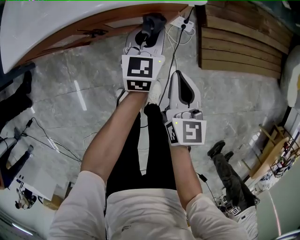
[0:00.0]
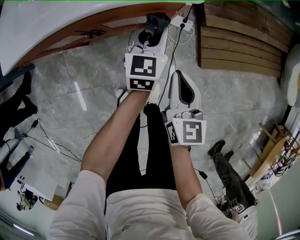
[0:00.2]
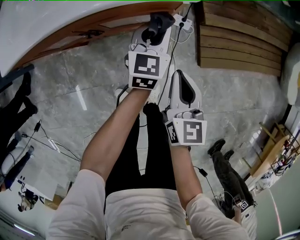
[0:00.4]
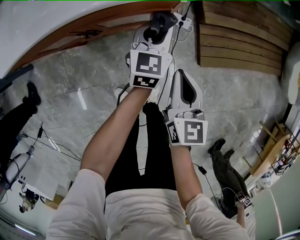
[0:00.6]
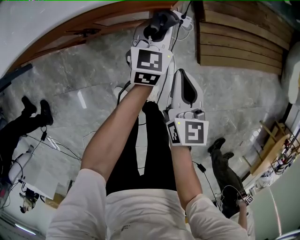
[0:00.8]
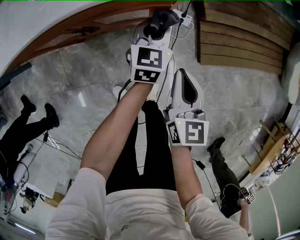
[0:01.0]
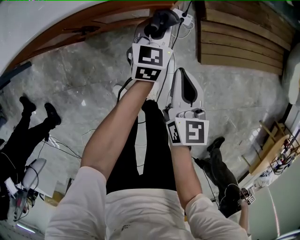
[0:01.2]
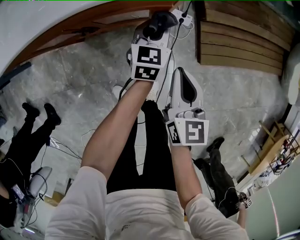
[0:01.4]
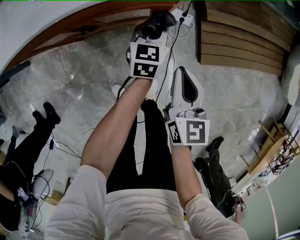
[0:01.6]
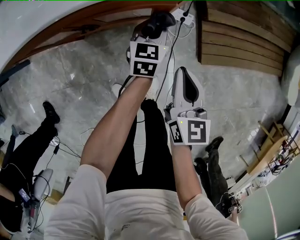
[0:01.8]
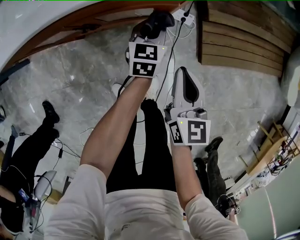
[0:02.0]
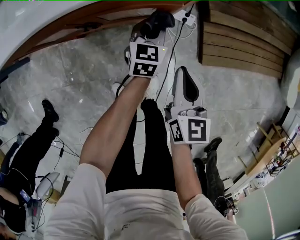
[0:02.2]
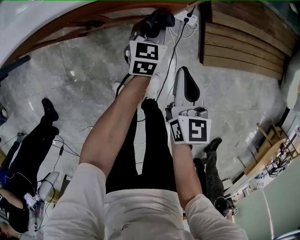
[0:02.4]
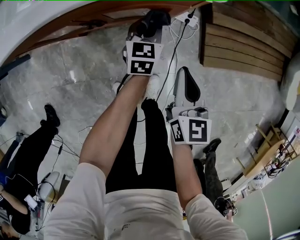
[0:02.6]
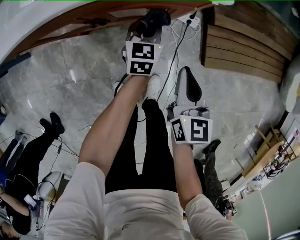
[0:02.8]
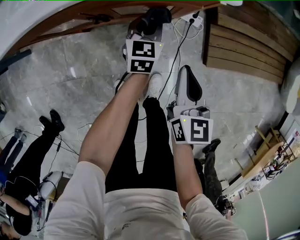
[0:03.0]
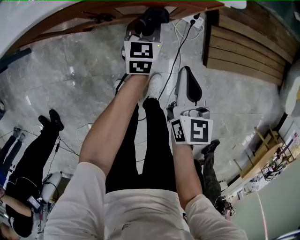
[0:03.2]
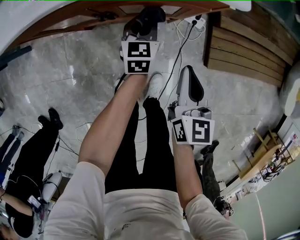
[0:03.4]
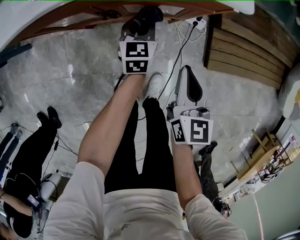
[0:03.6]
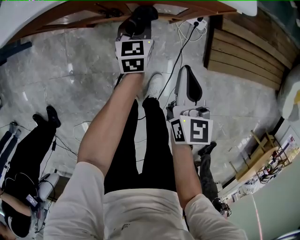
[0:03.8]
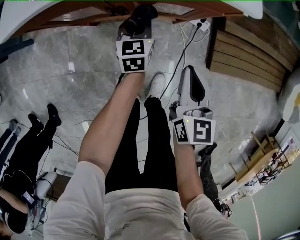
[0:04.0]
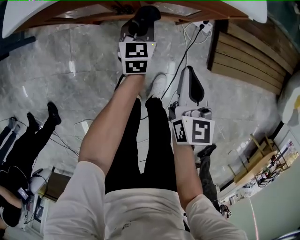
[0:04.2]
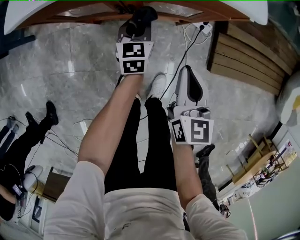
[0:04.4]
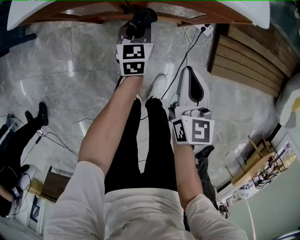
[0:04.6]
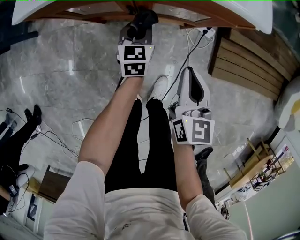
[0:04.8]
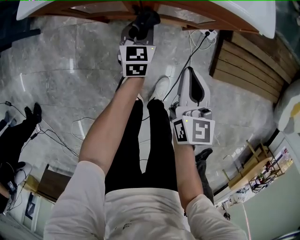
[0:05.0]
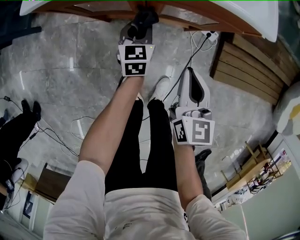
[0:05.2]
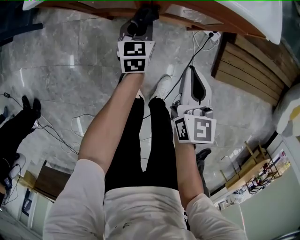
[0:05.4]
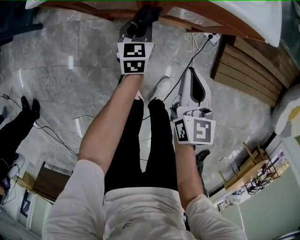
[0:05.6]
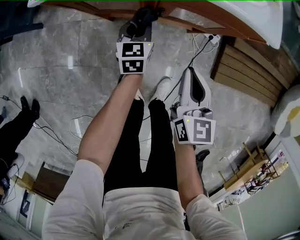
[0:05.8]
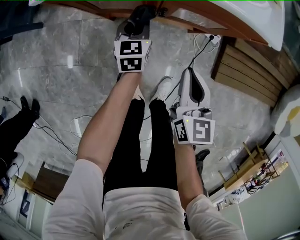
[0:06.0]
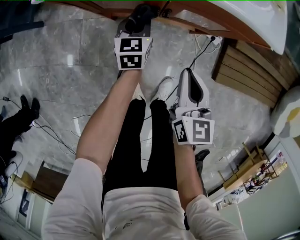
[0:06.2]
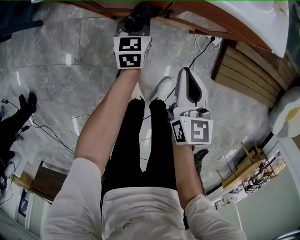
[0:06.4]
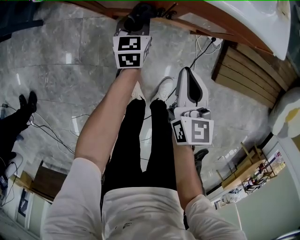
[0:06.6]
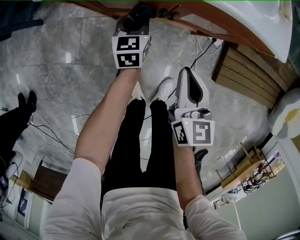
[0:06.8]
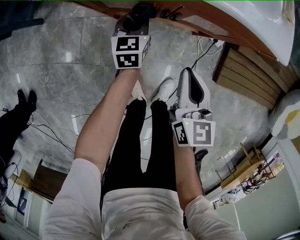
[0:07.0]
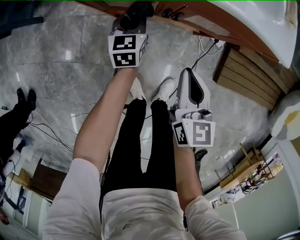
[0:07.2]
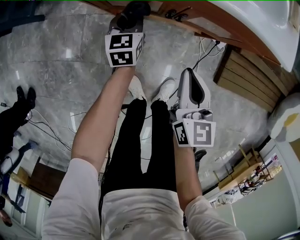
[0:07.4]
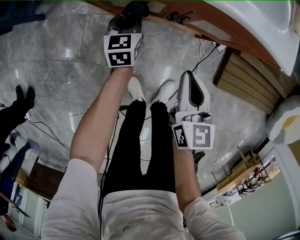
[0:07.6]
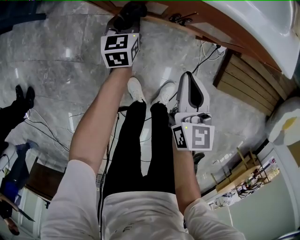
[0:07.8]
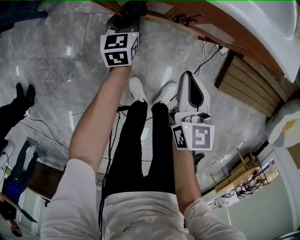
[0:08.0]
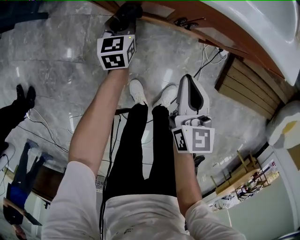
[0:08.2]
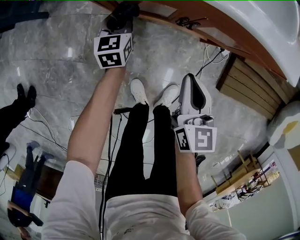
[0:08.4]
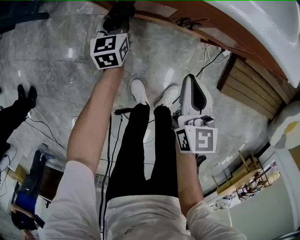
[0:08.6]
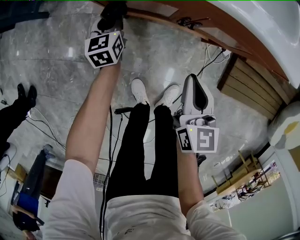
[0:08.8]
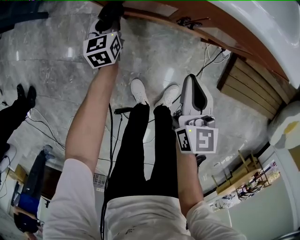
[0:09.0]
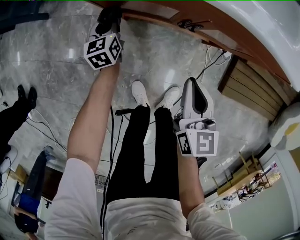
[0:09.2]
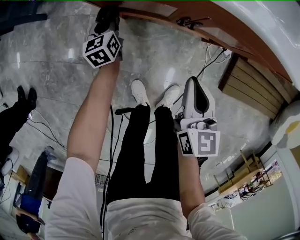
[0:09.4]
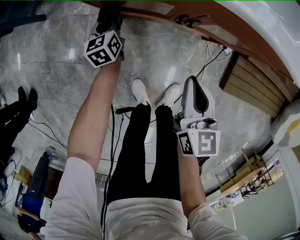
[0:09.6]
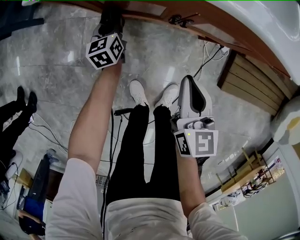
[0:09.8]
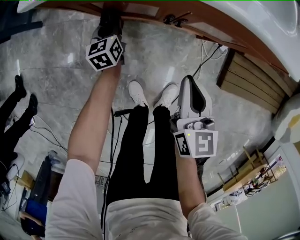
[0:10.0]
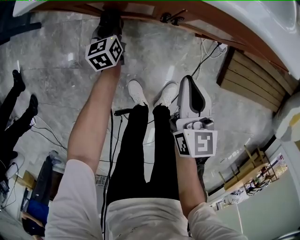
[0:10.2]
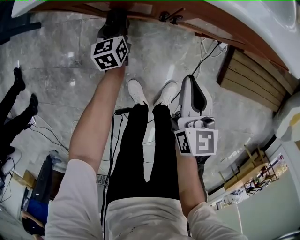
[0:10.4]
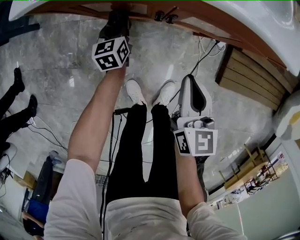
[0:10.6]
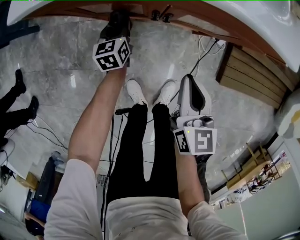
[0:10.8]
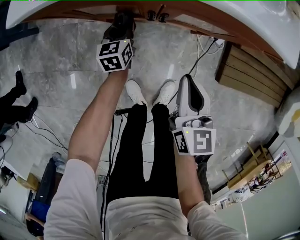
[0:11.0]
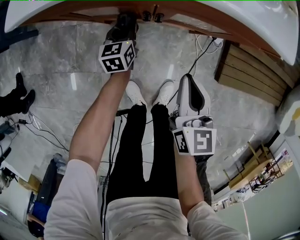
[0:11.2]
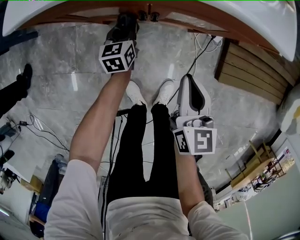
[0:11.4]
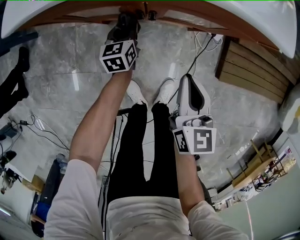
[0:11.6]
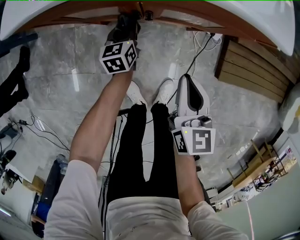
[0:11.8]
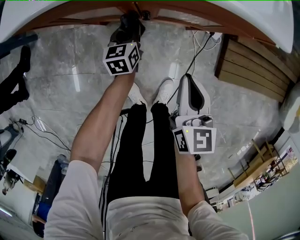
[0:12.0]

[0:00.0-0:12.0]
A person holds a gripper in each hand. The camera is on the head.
0.0 to 1.6 s: The left gripper goes about 10 cm downward.
1.6 to 3.0 s: The left gripper heads to the left, covering approximately 10 cm.
3.0 to 4.4 s: The left gripper heads to the left, covering some 10 cm. Meanwhile the right gripper travels to the left by roughly 5 cm.
4.4 to 6.0 s: Both grippers travel together to the left, roughly 10 cm.
6.0 to 7.6 s: The left gripper heads to the left, covering about 10 cm, while the right gripper is displaced to the left by about 5 cm.
7.6 to 9.0 s: The left gripper moves to the left, some 10 cm.
9.0 to 10.4 s: The left gripper heads to the right, covering roughly 10 cm.
10.4 to 12.0 s: The right gripper shifts roughly 5 cm to the right. The left gripper is displaced to the right by approximately 15 cm.

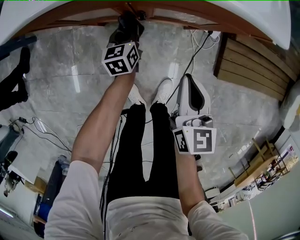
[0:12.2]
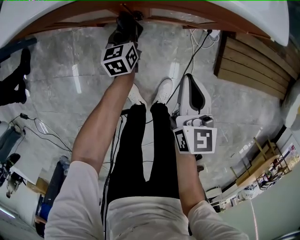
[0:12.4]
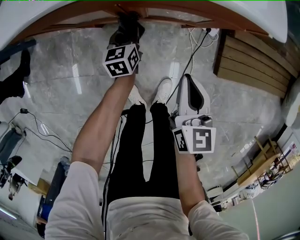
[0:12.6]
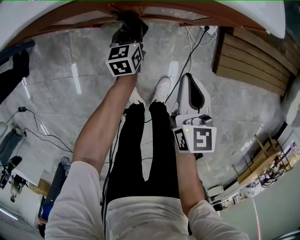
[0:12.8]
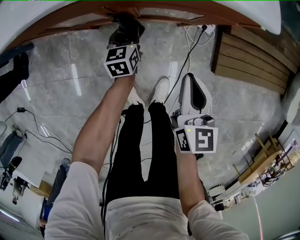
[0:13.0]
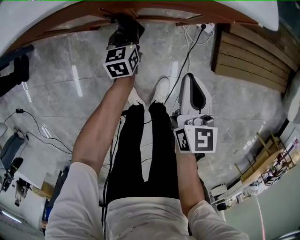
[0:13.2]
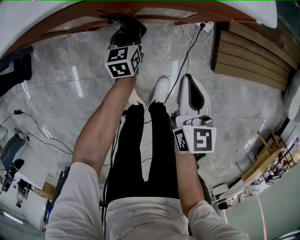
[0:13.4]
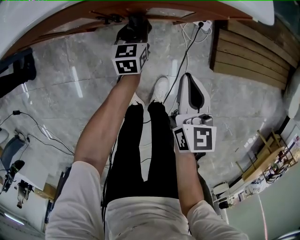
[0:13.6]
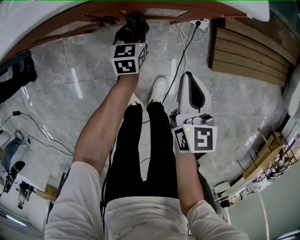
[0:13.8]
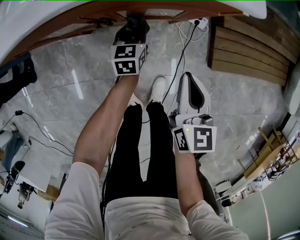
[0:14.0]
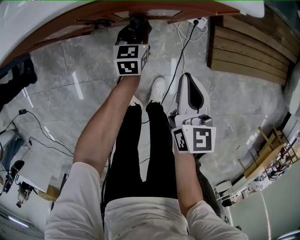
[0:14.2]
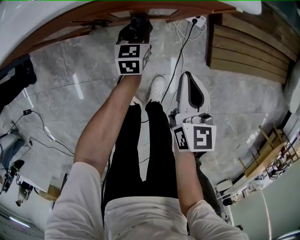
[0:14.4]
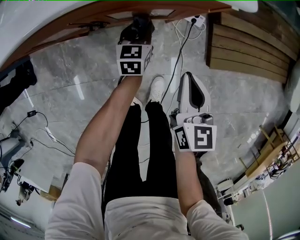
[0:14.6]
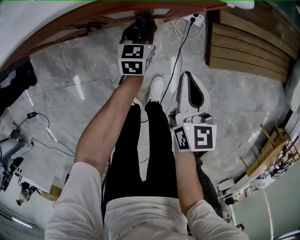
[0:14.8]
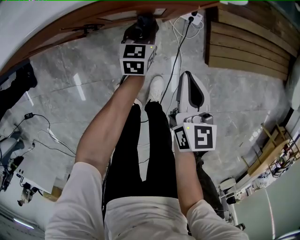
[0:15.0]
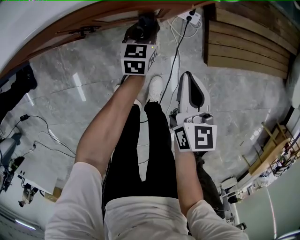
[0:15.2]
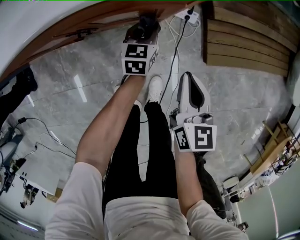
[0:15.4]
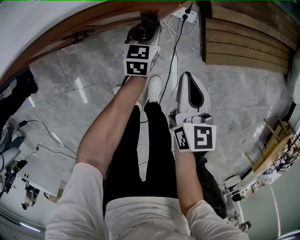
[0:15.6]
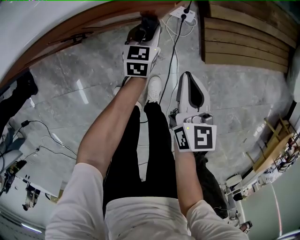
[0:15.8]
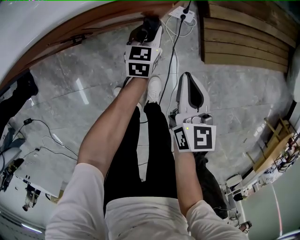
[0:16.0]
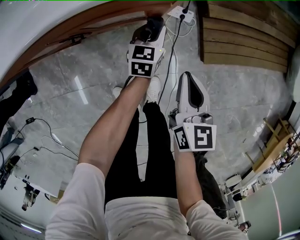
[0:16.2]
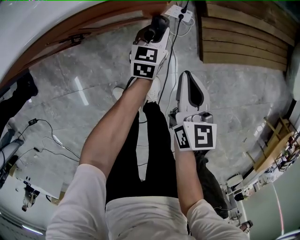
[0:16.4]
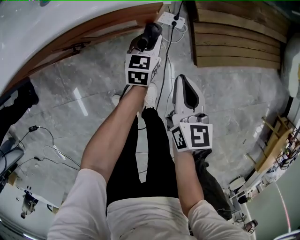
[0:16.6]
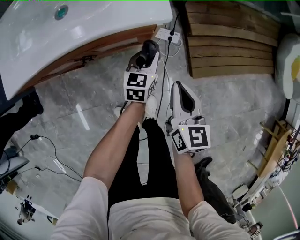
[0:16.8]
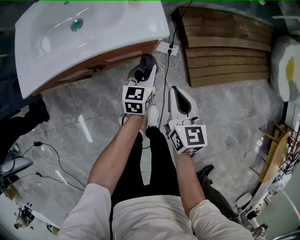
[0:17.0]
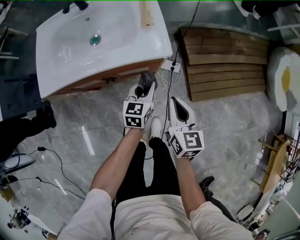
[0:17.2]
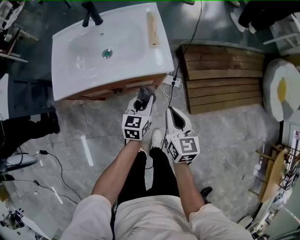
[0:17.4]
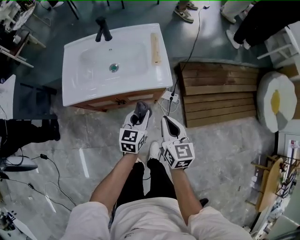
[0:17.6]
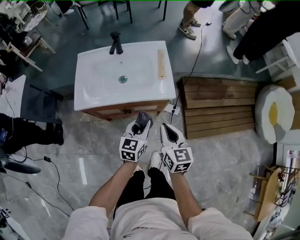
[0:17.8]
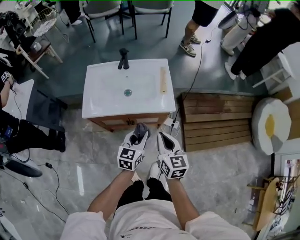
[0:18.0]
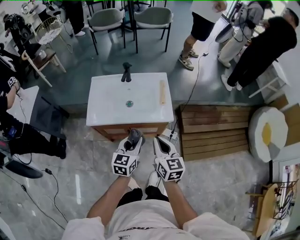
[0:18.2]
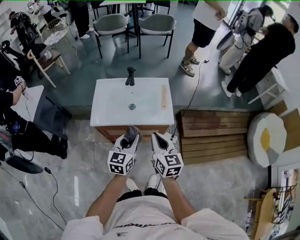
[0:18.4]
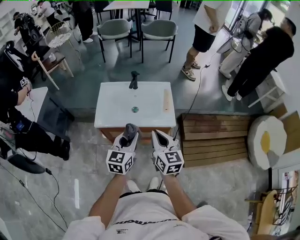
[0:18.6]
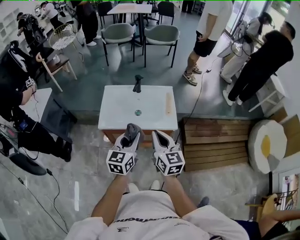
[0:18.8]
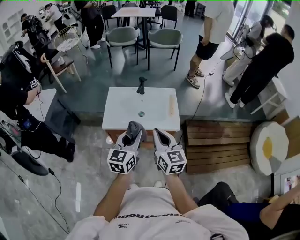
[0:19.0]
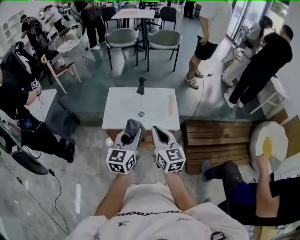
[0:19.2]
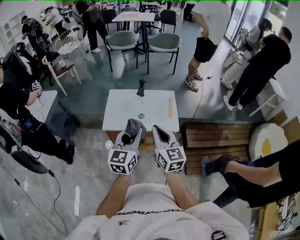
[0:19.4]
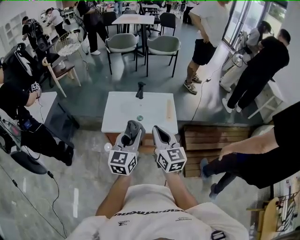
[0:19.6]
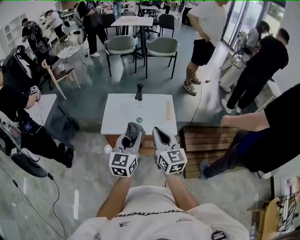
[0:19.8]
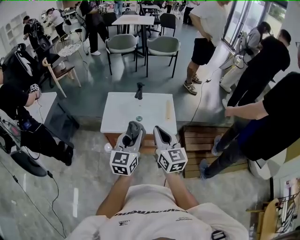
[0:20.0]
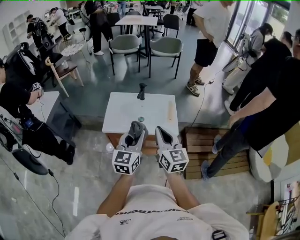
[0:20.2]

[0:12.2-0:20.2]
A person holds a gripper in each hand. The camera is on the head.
12.2 to 13.8 s: The left gripper shifts approximately 10 cm to the right, while the right gripper travels to the right by some 5 cm.
13.8 to 15.4 s: The left gripper moves to the right, some 15 cm; the right gripper moves to the right, some 5 cm.
15.4 to 17.0 s: The grippers both shift upward by some 15 cm.
17.0 to 18.6 s: Both grippers move upward and to the left, about 50 cm. The left gripper changes its angle by roughly 20 degrees, while the right gripper rotates roughly 30 degrees.
18.6 to 20.2 s: The grippers both shift upward by about 10 cm.

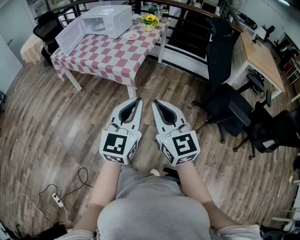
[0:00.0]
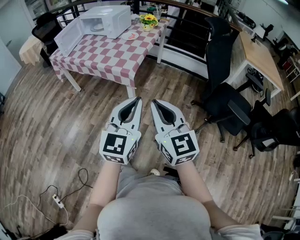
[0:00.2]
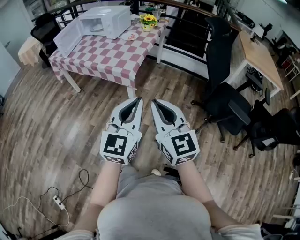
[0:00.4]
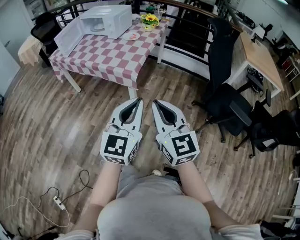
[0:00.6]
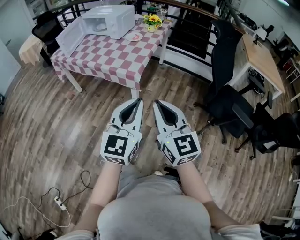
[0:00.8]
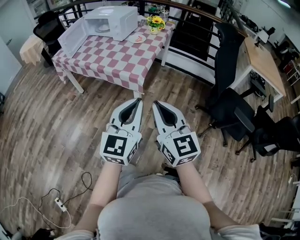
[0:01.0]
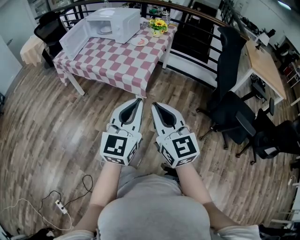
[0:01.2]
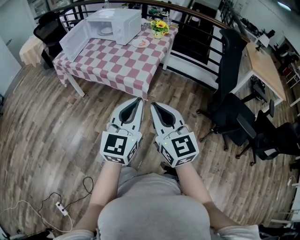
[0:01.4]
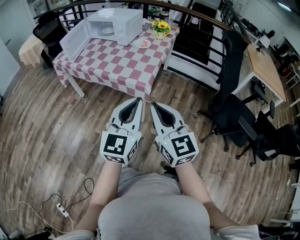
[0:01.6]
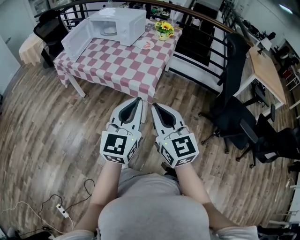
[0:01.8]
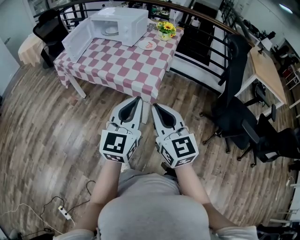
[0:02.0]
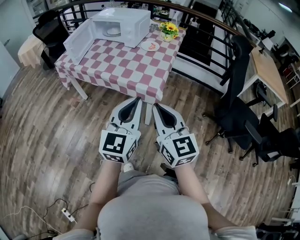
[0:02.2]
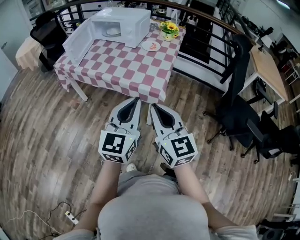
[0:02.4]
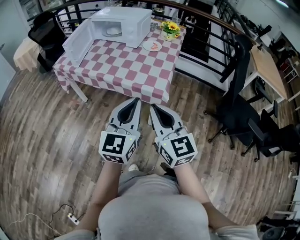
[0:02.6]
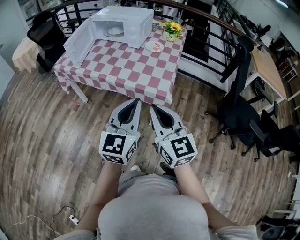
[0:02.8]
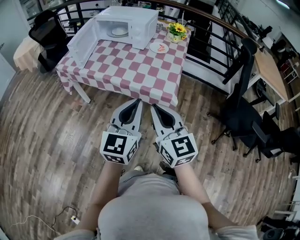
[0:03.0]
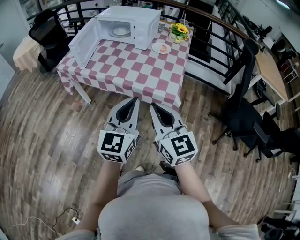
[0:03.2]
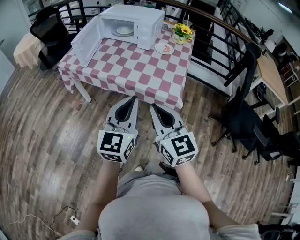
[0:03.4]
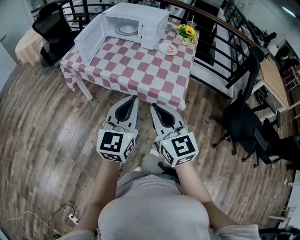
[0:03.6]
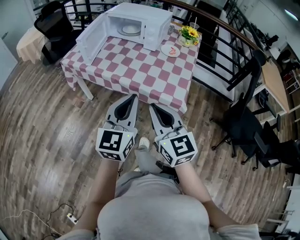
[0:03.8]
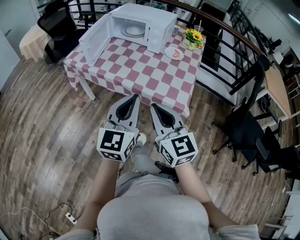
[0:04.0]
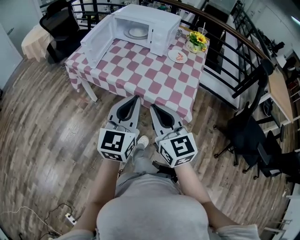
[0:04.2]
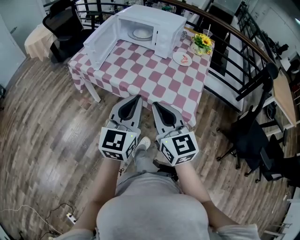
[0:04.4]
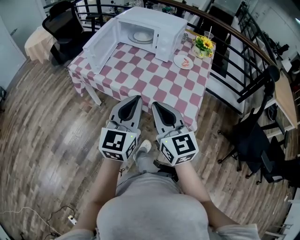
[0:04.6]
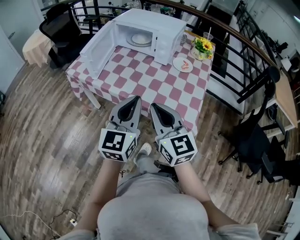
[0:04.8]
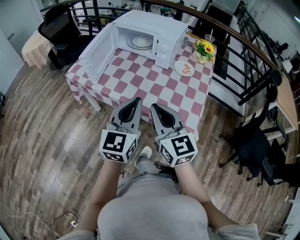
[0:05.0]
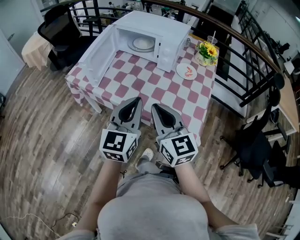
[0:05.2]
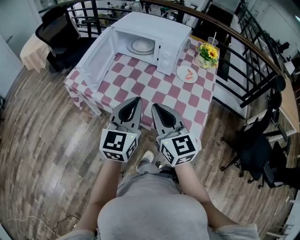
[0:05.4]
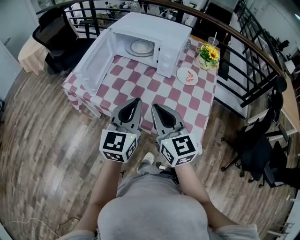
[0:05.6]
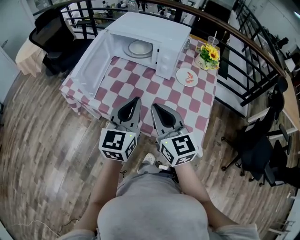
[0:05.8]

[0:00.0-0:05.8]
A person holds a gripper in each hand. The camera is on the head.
0.0 to 1.4 s: The grippers both shift to the left and forward by about 15 cm.
1.4 to 2.8 s: Both grippers move to the left and forward, roughly 20 cm.
2.8 to 4.4 s: Both grippers travel together forward and to the left, roughly 15 cm.
4.4 to 5.8 s: The grippers both shift forward by about 20 cm.
